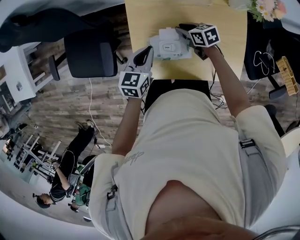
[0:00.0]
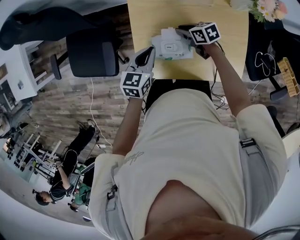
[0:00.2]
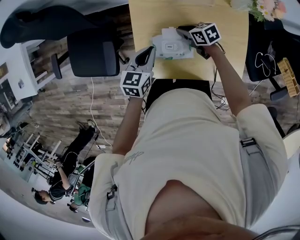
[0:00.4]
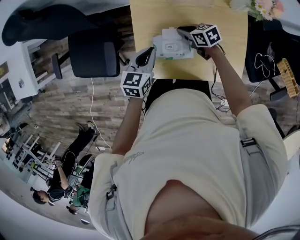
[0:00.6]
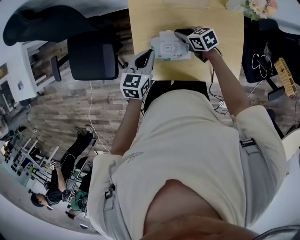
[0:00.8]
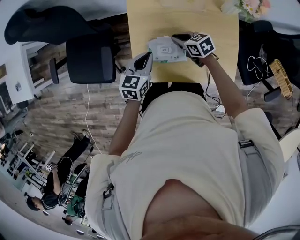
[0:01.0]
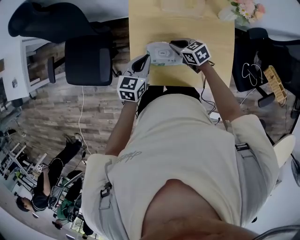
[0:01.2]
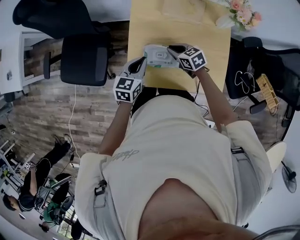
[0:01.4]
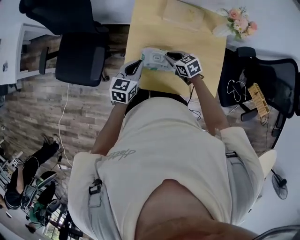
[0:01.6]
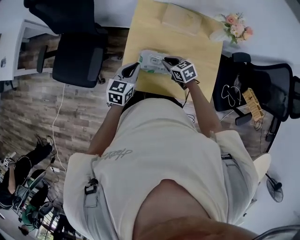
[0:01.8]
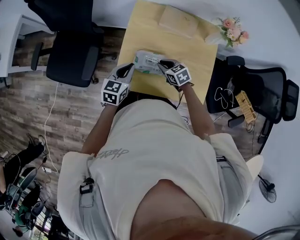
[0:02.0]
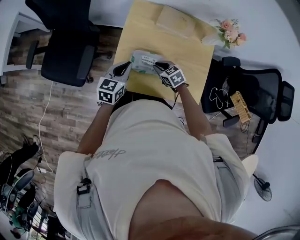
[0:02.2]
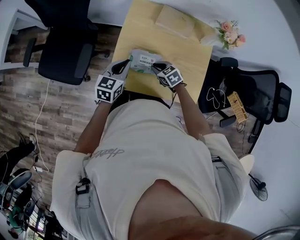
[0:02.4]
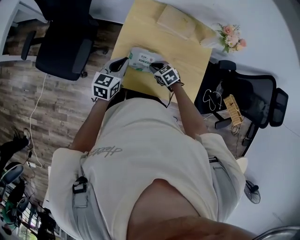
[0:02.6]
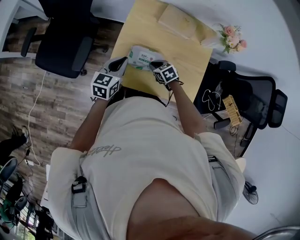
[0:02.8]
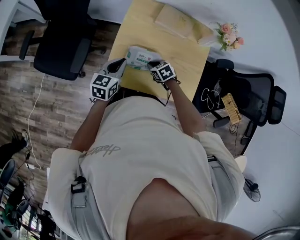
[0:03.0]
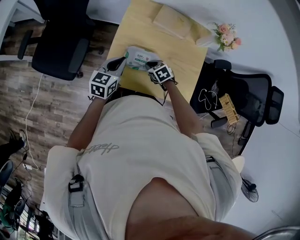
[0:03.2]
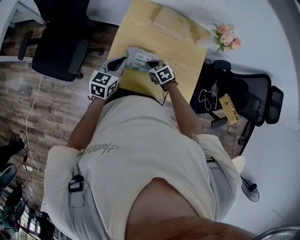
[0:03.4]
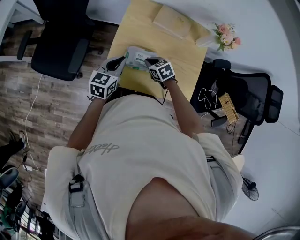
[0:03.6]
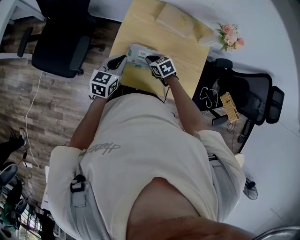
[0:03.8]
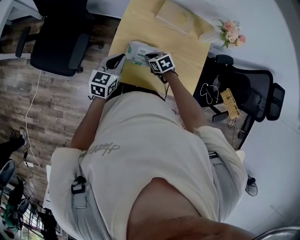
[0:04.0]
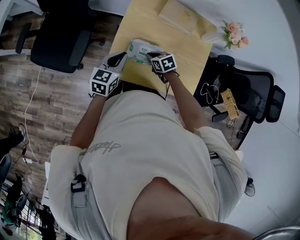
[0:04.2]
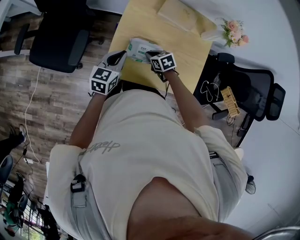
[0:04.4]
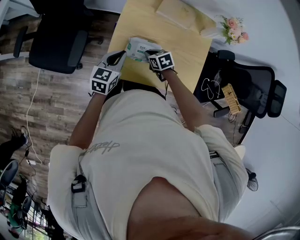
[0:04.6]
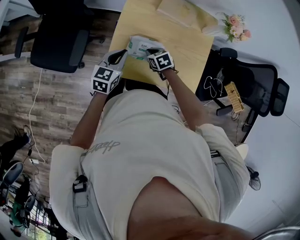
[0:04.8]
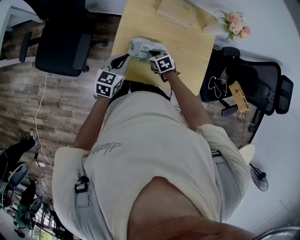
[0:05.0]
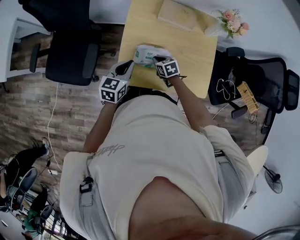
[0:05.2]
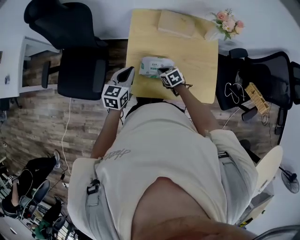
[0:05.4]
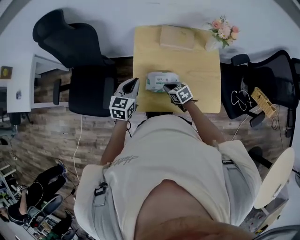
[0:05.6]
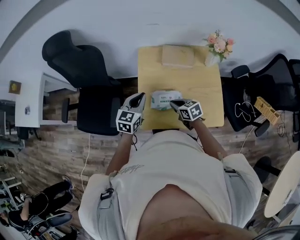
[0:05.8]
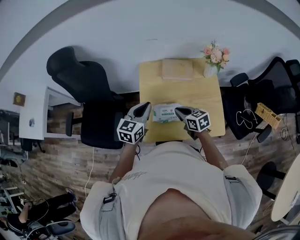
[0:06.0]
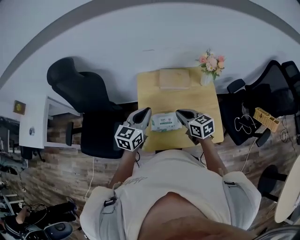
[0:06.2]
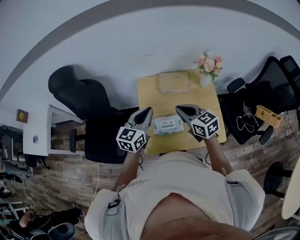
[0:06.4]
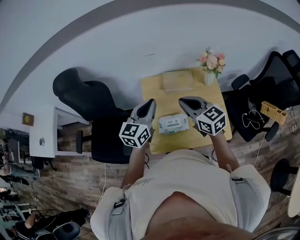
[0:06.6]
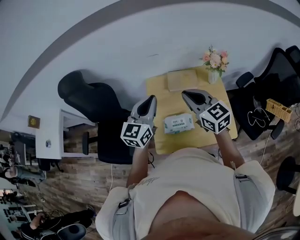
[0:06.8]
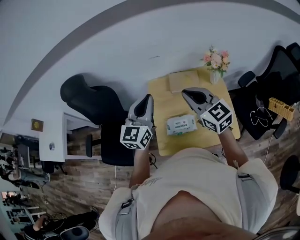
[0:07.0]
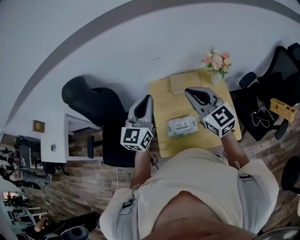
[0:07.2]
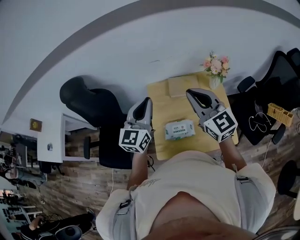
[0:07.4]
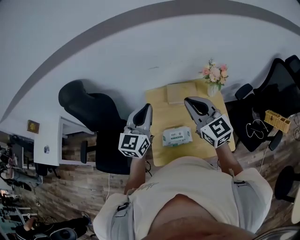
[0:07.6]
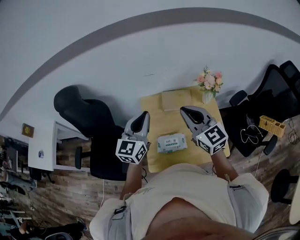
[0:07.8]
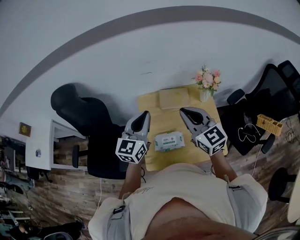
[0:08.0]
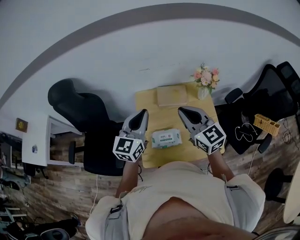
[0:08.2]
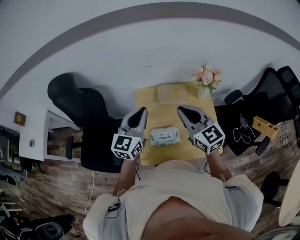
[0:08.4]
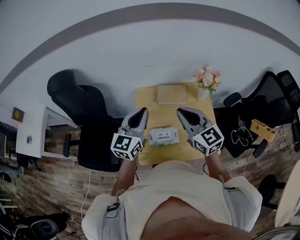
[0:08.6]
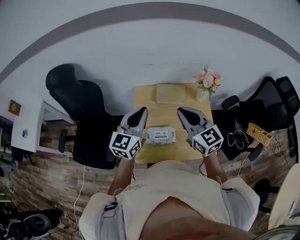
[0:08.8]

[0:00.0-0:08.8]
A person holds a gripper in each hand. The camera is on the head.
0.0 to 1.4 s: The right gripper is displaced upward and backward by roughly 10 cm, and rotates about 20 degrees. The left gripper changes place by approximately 5 cm.
1.4 to 3.0 s: The right gripper goes some 10 cm downward and backward, and turns by some 20 degrees.
3.0 to 4.4 s: There are only small adjustments of the grippers.
4.4 to 5.8 s: The grippers both shift upward by some 10 cm. The right gripper swivels about 30 degrees.
5.8 to 7.4 s: The left gripper moves upward, some 20 cm, and swivels approximately 20 degrees; the right gripper shifts approximately 35 cm upward, and tilts its fingers approximately 40 degrees upward.
7.4 to 8.8 s: The right gripper shifts by approximately 5 cm.

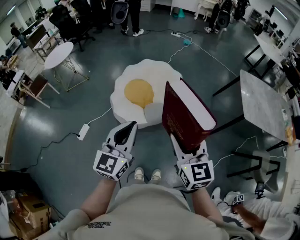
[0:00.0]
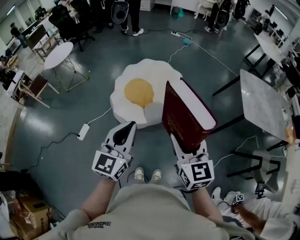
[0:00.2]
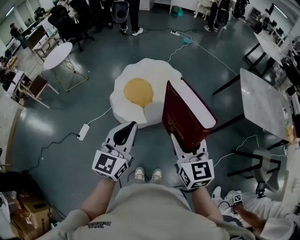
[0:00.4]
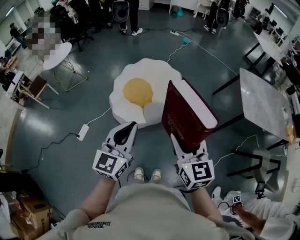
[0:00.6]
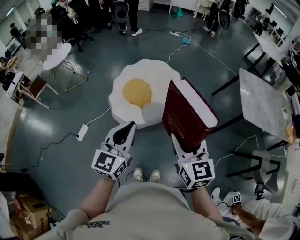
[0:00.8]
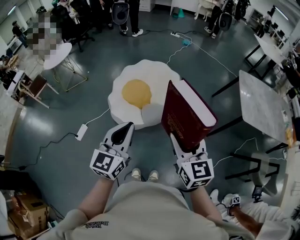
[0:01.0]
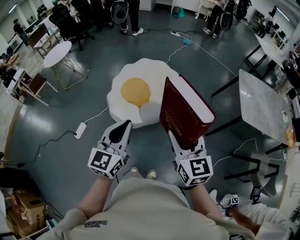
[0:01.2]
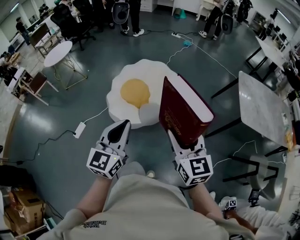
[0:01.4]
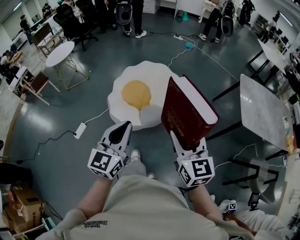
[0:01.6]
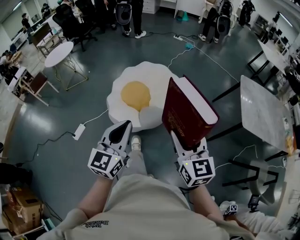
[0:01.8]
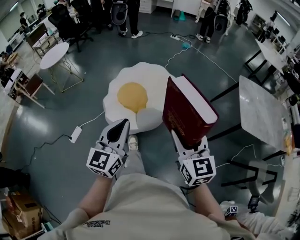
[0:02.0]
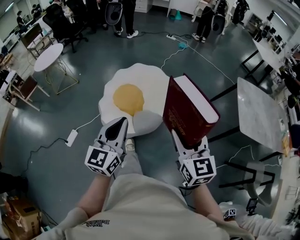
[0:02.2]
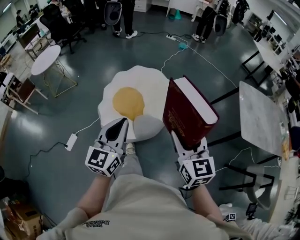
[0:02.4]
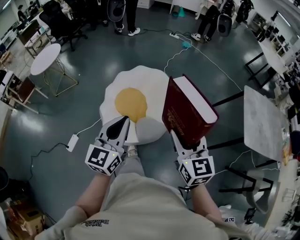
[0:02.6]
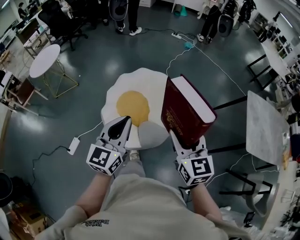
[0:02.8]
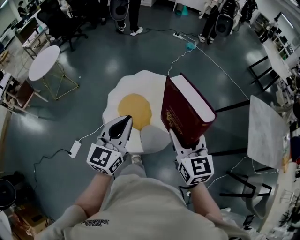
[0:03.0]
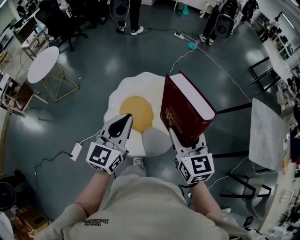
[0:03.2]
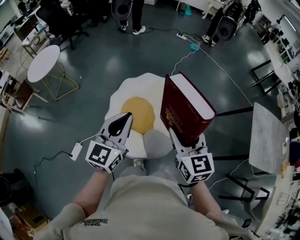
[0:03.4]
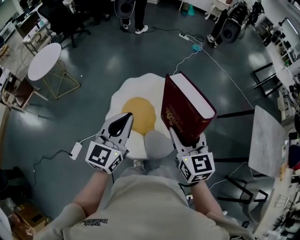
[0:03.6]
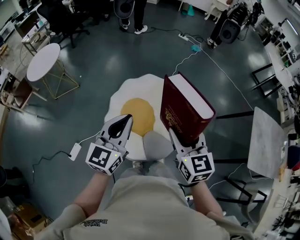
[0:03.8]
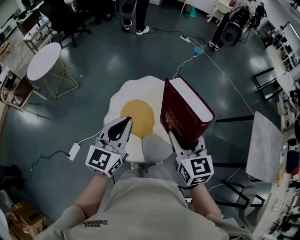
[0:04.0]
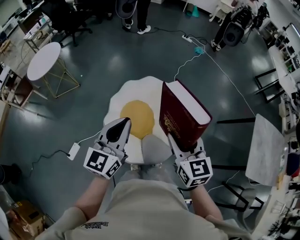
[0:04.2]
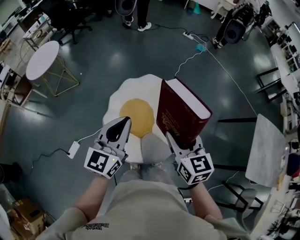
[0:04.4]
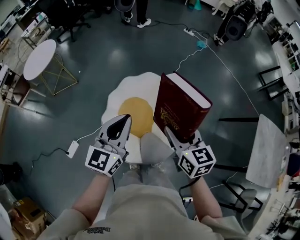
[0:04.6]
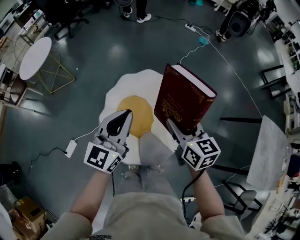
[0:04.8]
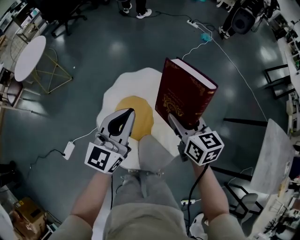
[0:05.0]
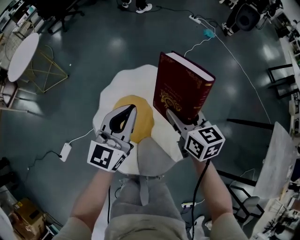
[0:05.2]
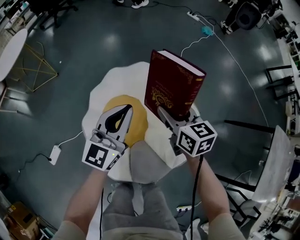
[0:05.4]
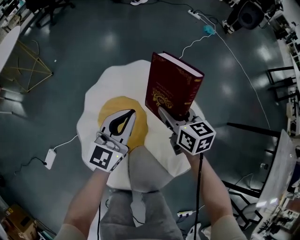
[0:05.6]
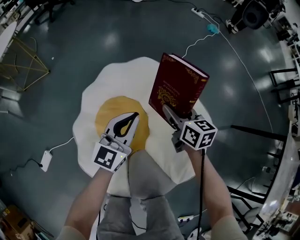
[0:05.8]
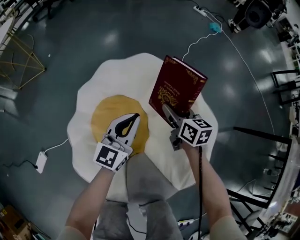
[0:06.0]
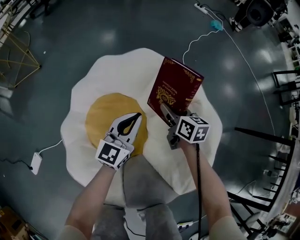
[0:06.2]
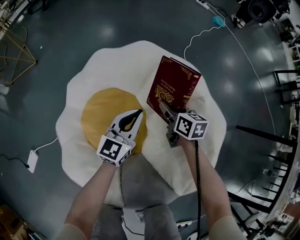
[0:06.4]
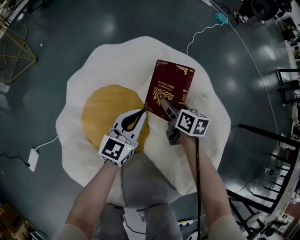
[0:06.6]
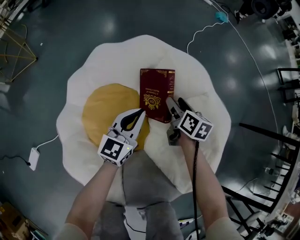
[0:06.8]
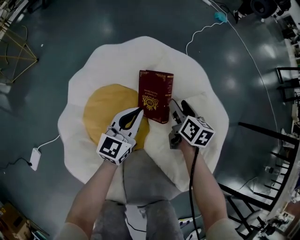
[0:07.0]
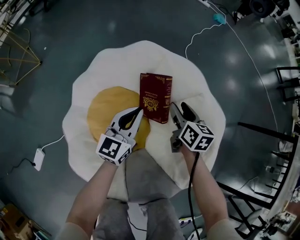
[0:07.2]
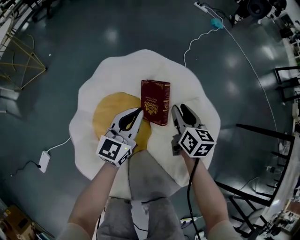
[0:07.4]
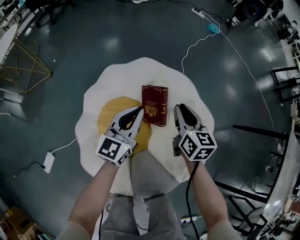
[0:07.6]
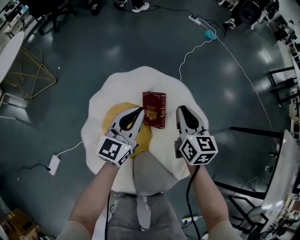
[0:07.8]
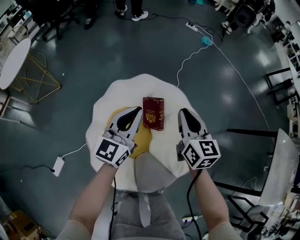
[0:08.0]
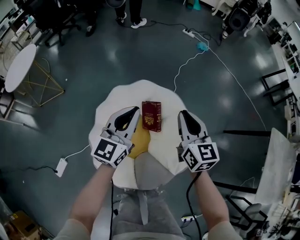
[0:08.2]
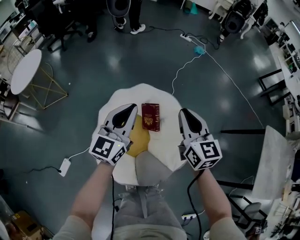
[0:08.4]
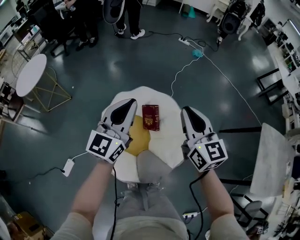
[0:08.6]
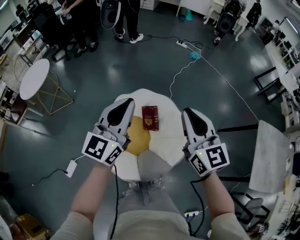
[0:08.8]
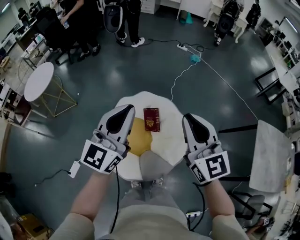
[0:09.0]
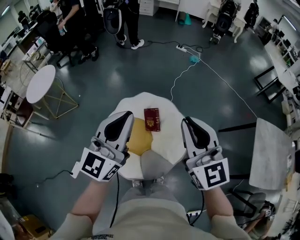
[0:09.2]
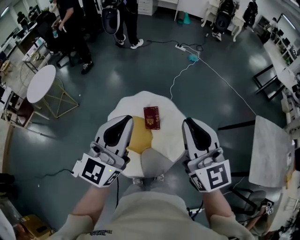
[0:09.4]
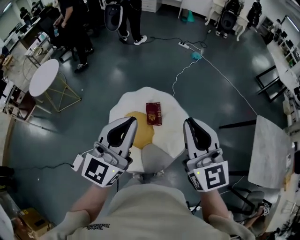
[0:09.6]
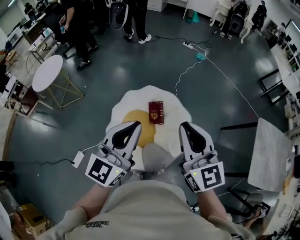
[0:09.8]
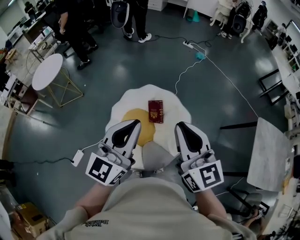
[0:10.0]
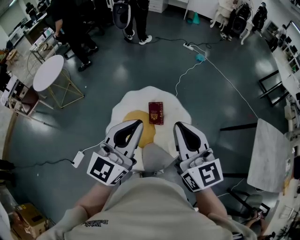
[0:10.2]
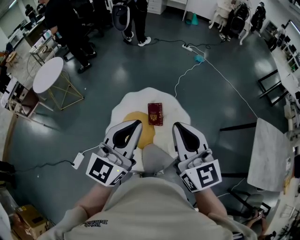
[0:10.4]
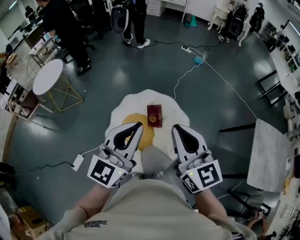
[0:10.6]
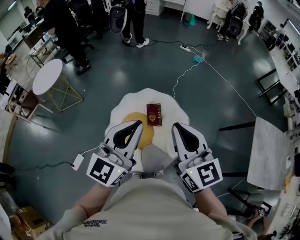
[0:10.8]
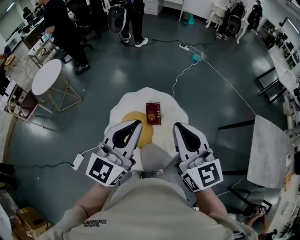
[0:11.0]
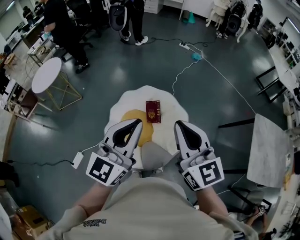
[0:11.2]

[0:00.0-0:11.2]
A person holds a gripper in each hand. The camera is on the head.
0.0 to 1.6 s: The two grippers go about 5 cm to the right.
1.6 to 3.2 s: The right gripper heads forward and to the left, covering roughly 40 cm, while the left gripper goes about 40 cm forward.
3.2 to 4.8 s: The right gripper travels forward and downward by roughly 25 cm, and swivels approximately 20 degrees, while the left gripper heads forward, covering approximately 15 cm.
4.8 to 6.4 s: The grippers both shift downward by approximately 60 cm.
6.4 to 8.0 s: The two grippers go some 35 cm upward. The right gripper rotates some 30 degrees, and closes.
8.0 to 9.6 s: The grippers both shift upward and backward by some 50 cm. The right gripper swivels roughly 30 degrees.
9.6 to 11.2 s: The grippers make only small movements.

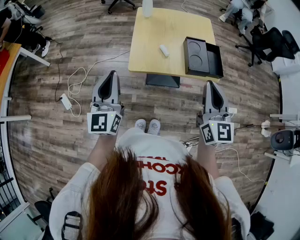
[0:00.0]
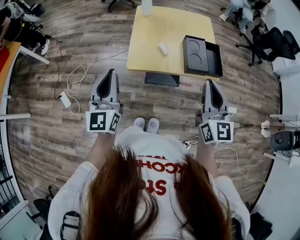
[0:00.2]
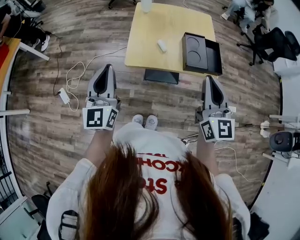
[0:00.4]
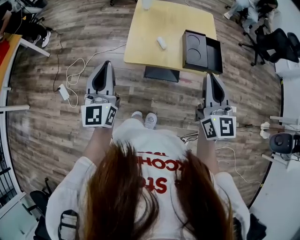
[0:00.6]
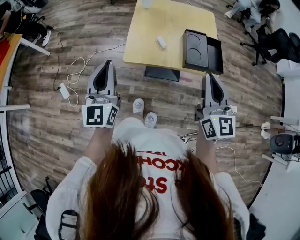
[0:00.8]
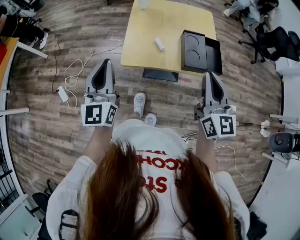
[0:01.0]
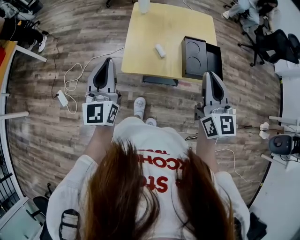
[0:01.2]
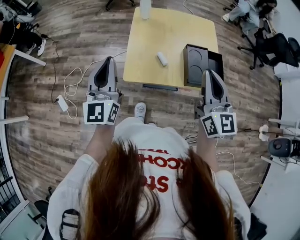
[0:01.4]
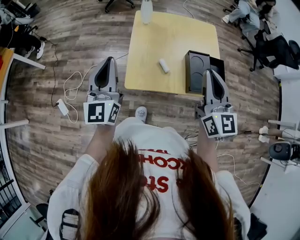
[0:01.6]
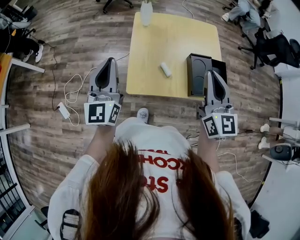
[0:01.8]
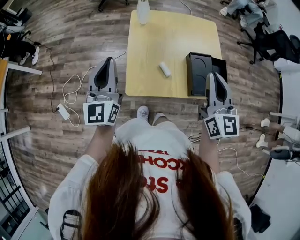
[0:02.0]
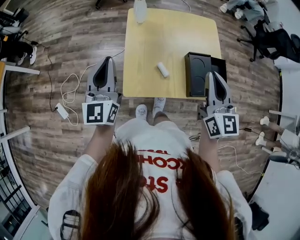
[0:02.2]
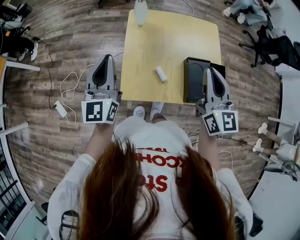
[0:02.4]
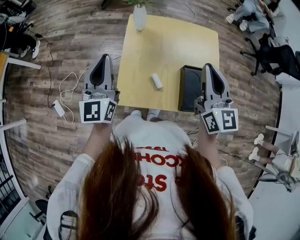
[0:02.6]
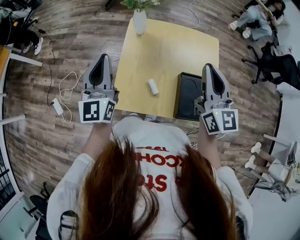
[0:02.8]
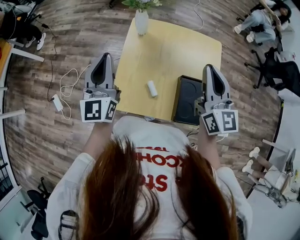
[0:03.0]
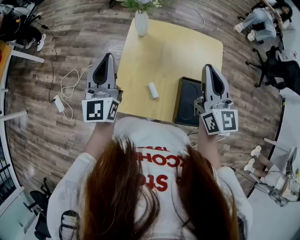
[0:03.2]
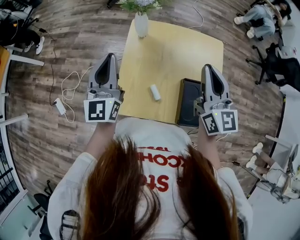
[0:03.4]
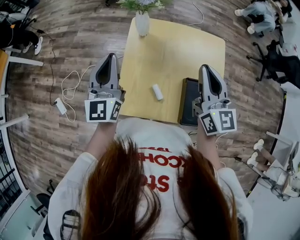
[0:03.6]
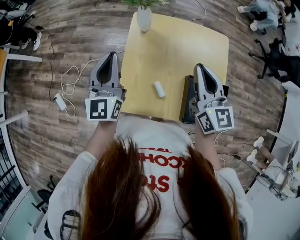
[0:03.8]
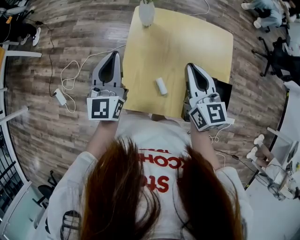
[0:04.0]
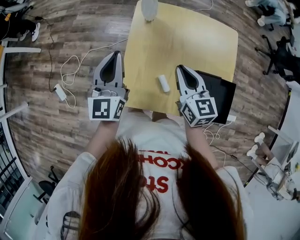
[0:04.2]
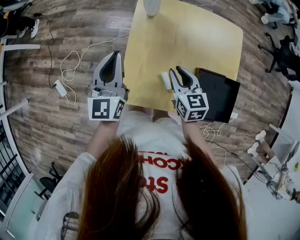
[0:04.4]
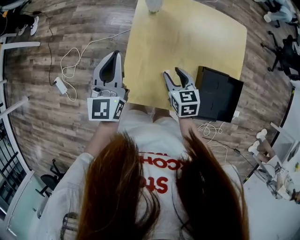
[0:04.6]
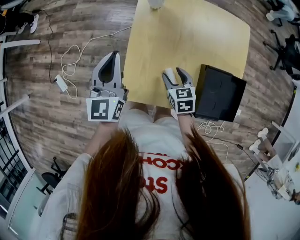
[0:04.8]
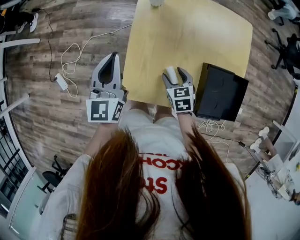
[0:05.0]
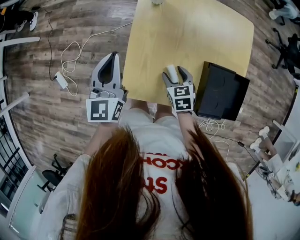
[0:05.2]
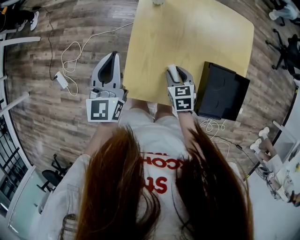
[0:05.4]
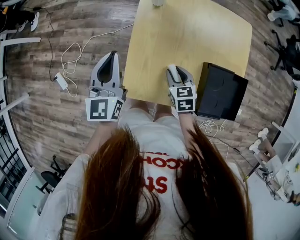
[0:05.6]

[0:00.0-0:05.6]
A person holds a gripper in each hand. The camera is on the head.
0.0 to 1.4 s: The grippers both shift forward by roughly 10 cm.
1.4 to 2.8 s: Both grippers travel together forward, about 20 cm.
2.8 to 4.2 s: The right gripper moves downward and to the left, roughly 20 cm, and turns by approximately 30 degrees, while the left gripper travels downward by roughly 5 cm.
4.2 to 5.6 s: The right gripper moves downward, roughly 15 cm, turns by roughly 30 degrees, and opens up. The left gripper changes place by roughly 5 cm.
